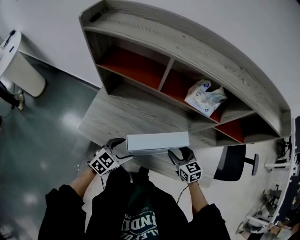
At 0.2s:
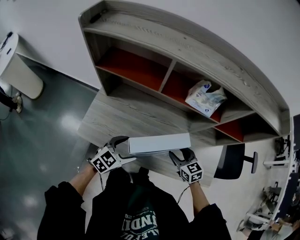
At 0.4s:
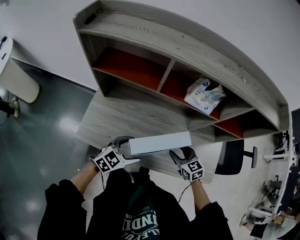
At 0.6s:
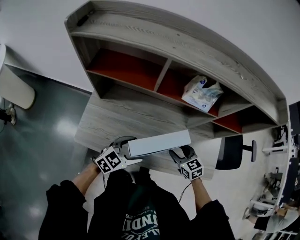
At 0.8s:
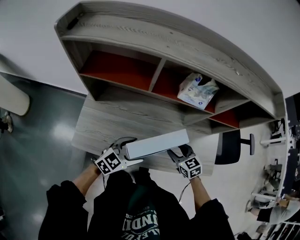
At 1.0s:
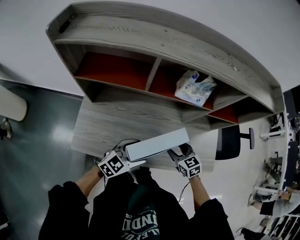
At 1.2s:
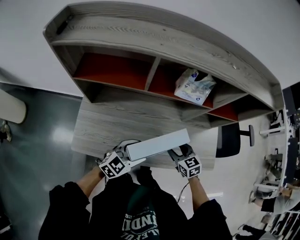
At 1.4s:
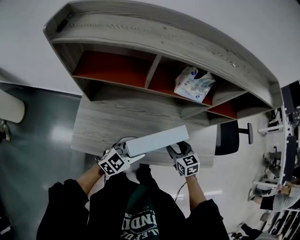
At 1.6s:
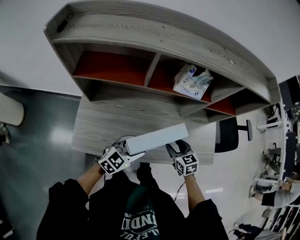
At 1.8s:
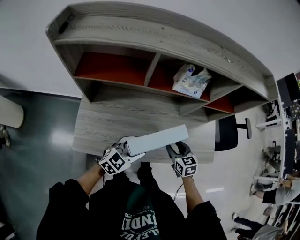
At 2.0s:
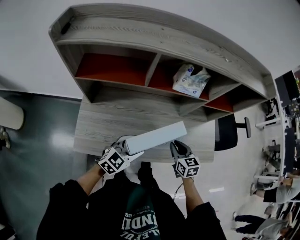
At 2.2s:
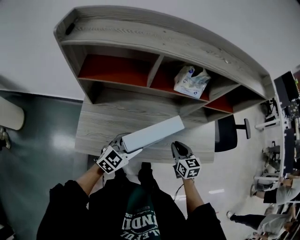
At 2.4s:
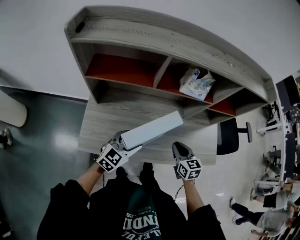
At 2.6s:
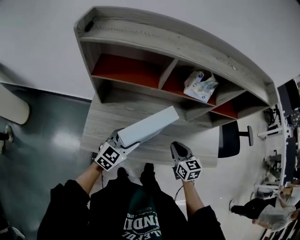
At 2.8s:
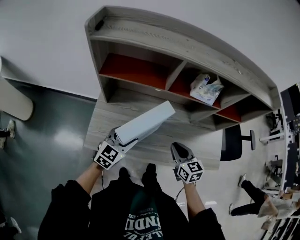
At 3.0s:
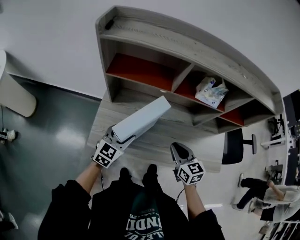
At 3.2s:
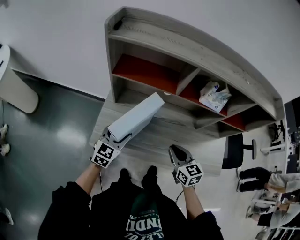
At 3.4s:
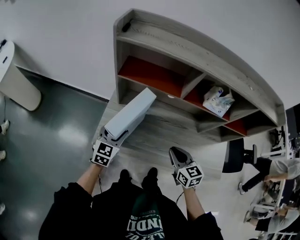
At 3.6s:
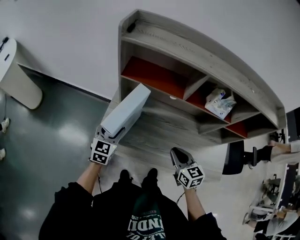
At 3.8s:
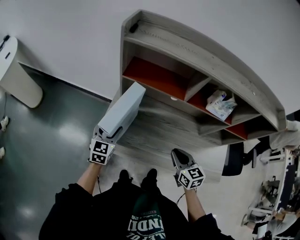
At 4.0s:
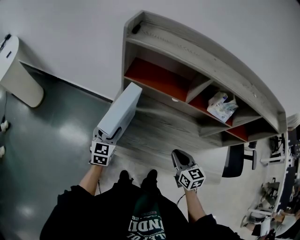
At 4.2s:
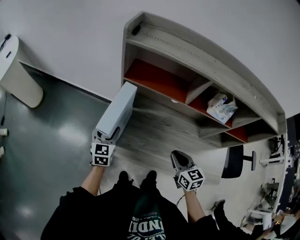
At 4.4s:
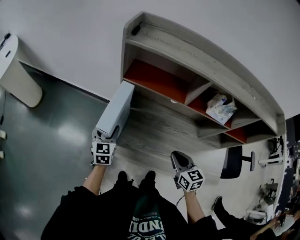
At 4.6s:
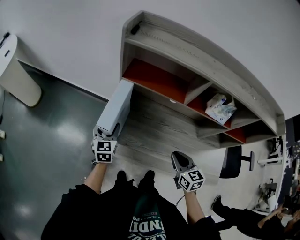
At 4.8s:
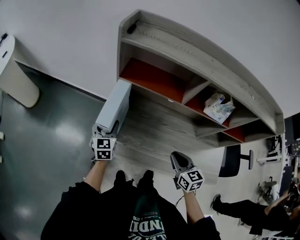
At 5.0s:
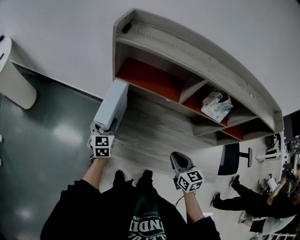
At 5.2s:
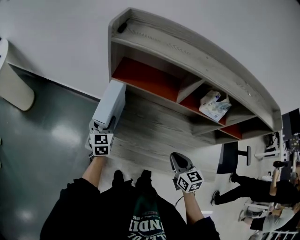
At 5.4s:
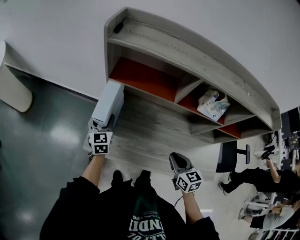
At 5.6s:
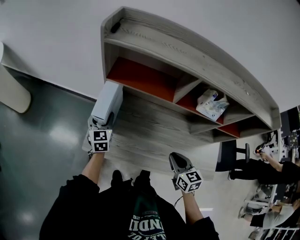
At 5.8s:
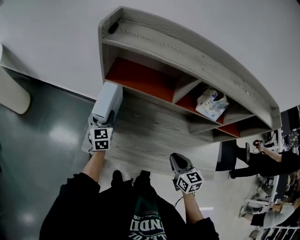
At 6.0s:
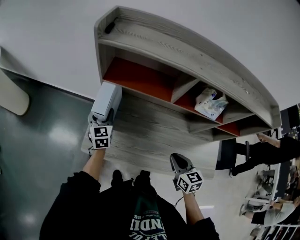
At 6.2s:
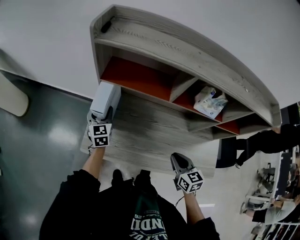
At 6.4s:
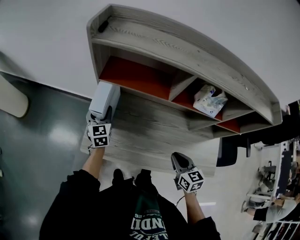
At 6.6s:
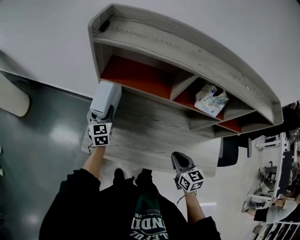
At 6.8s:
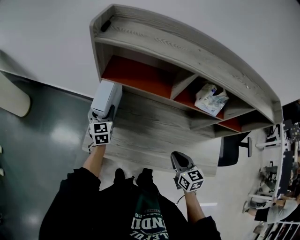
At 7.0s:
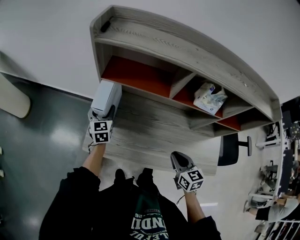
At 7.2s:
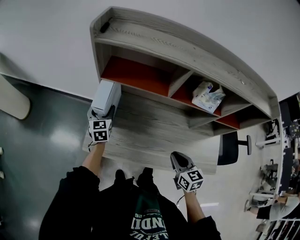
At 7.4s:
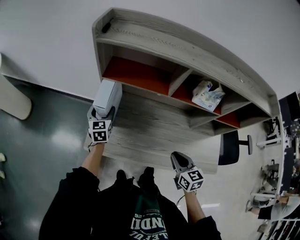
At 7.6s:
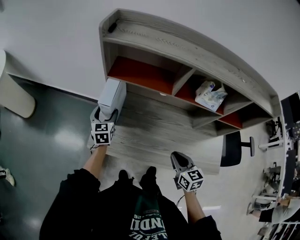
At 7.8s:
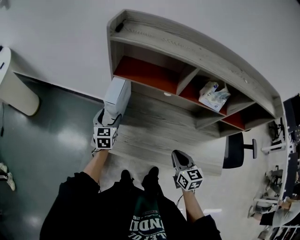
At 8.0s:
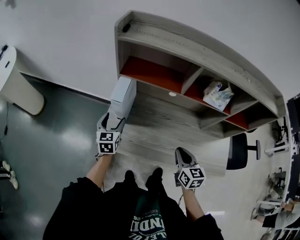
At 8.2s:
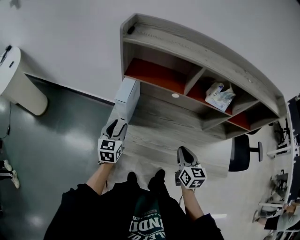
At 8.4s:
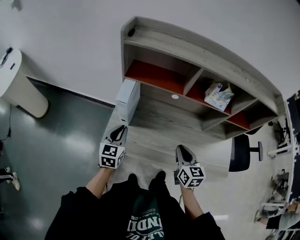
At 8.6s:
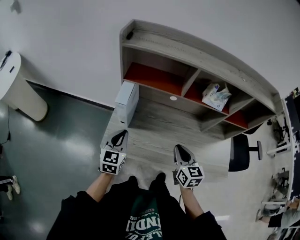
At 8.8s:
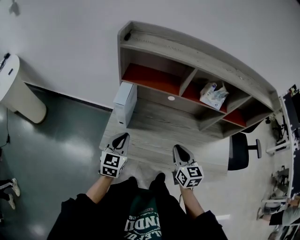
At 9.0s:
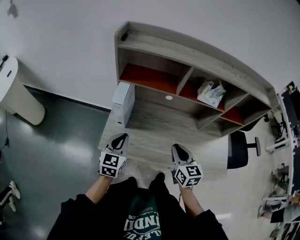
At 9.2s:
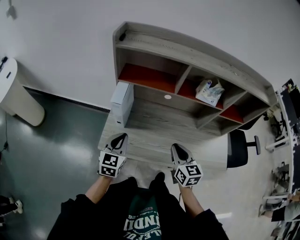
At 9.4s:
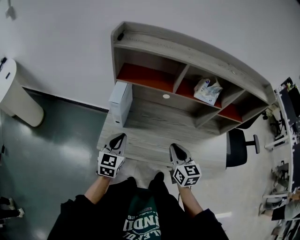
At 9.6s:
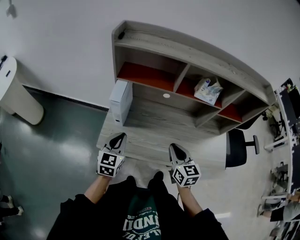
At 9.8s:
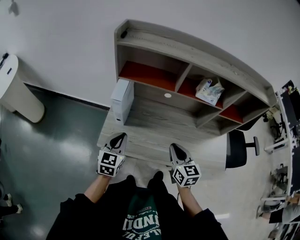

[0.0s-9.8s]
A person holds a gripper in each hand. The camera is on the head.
0.0s to 1.4s: The left gripper travels to the right by approximately 5 cm, and rotates about 20 degrees.
1.4s to 2.8s: The right gripper moves upward and to the left, about 10 cm, and closes up, while the left gripper shifts roughly 15 cm to the left, and rotates some 20 degrees.
2.8s to 4.2s: The left gripper shifts by about 20 cm, and swivels approximately 40 degrees; the right gripper ends up some 5 cm from where it was.
4.2s to 5.6s: The left gripper goes about 10 cm forward.
5.6s to 7.0s: The grippers move only a little.
7.0s to 8.4s: The left gripper heads backward, covering roughly 15 cm, and closes its fingers. The right gripper heads to the left, covering about 5 cm.
8.4s to 9.8s: The left gripper moves backward, approximately 5 cm.

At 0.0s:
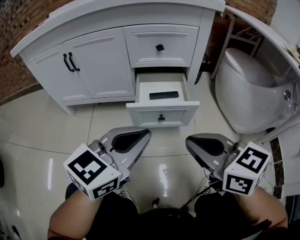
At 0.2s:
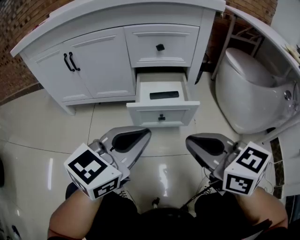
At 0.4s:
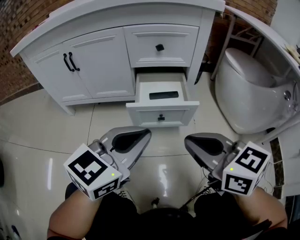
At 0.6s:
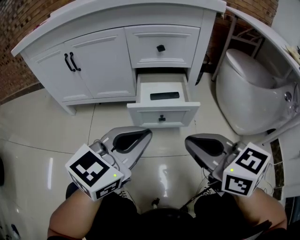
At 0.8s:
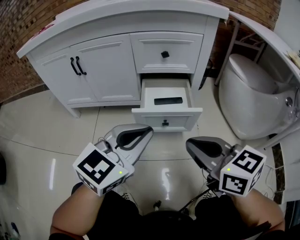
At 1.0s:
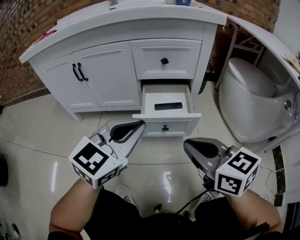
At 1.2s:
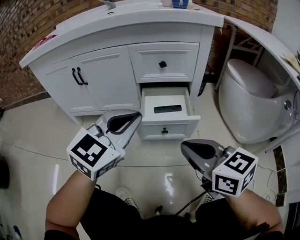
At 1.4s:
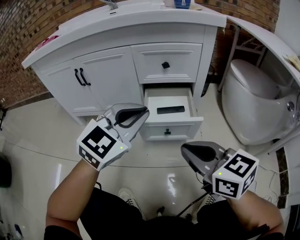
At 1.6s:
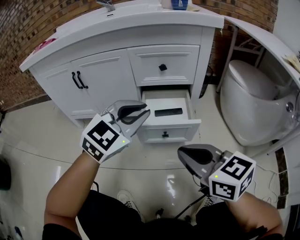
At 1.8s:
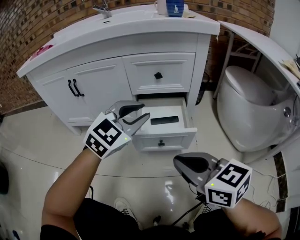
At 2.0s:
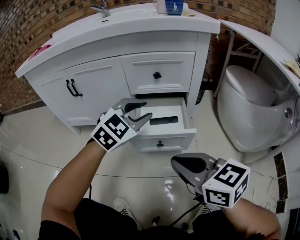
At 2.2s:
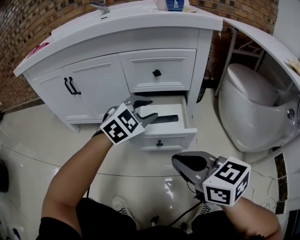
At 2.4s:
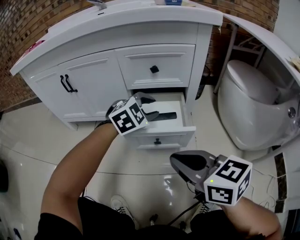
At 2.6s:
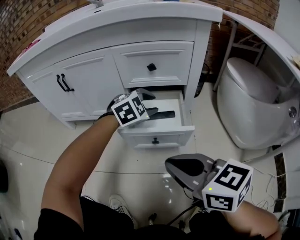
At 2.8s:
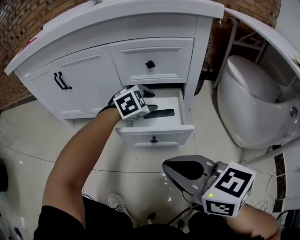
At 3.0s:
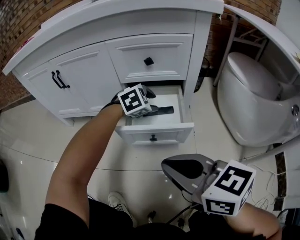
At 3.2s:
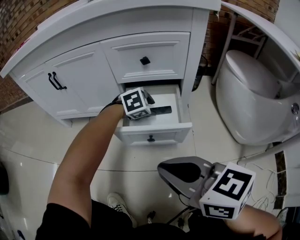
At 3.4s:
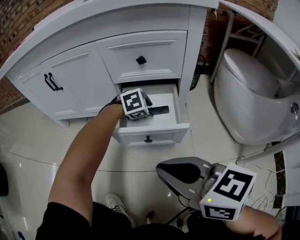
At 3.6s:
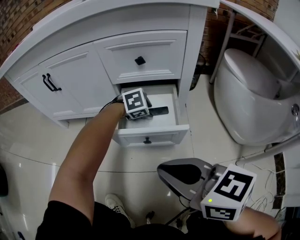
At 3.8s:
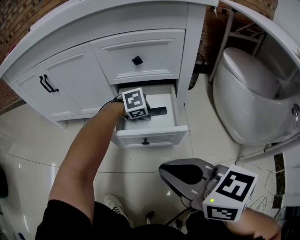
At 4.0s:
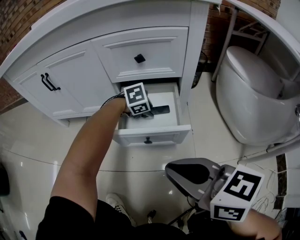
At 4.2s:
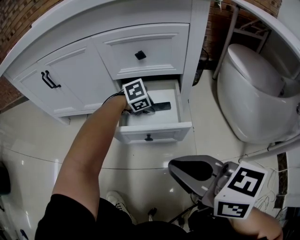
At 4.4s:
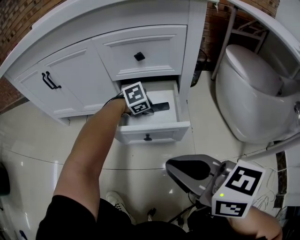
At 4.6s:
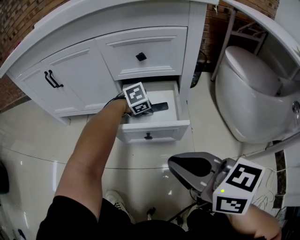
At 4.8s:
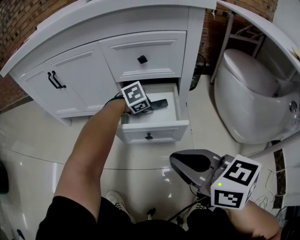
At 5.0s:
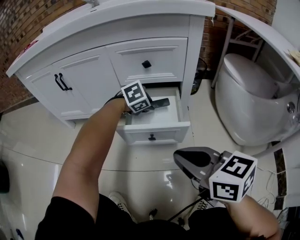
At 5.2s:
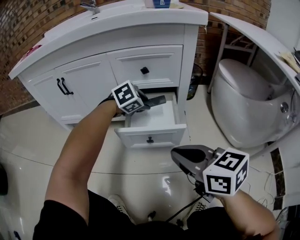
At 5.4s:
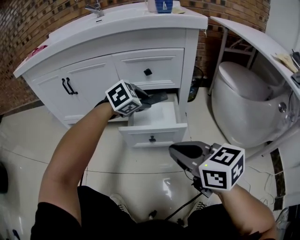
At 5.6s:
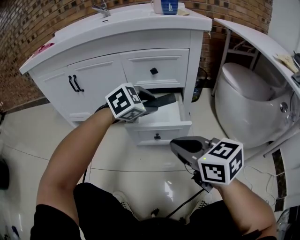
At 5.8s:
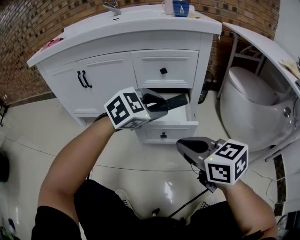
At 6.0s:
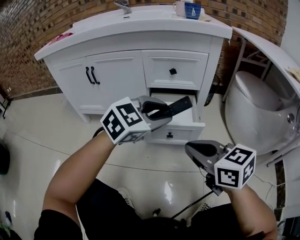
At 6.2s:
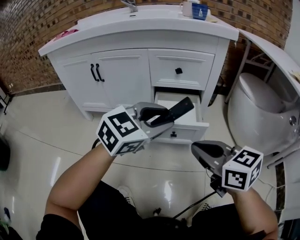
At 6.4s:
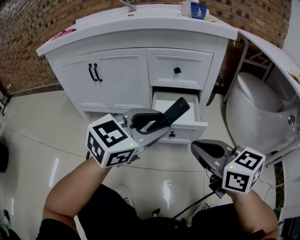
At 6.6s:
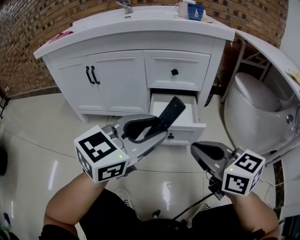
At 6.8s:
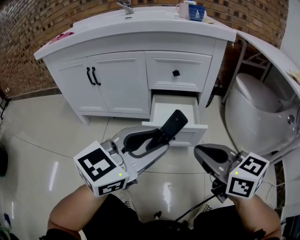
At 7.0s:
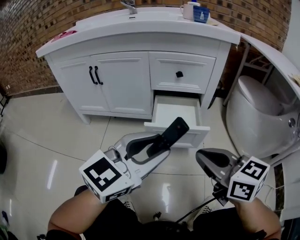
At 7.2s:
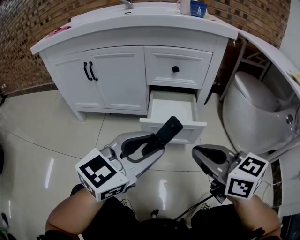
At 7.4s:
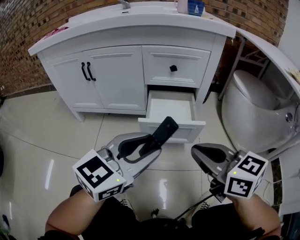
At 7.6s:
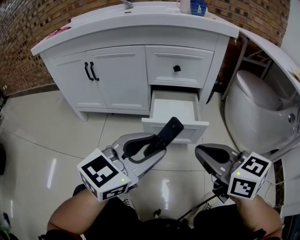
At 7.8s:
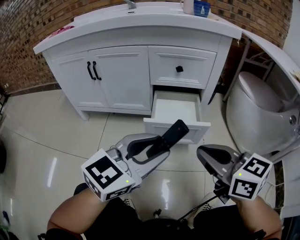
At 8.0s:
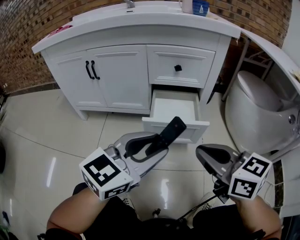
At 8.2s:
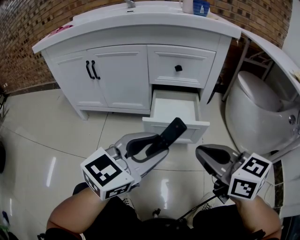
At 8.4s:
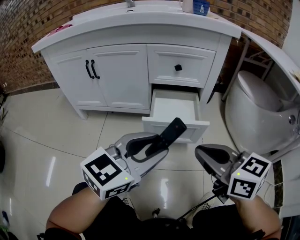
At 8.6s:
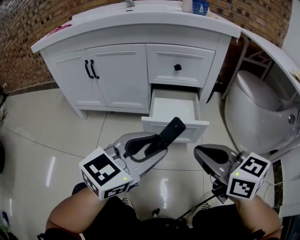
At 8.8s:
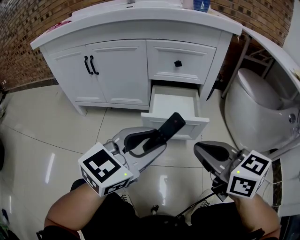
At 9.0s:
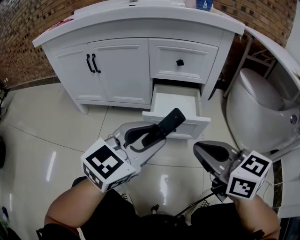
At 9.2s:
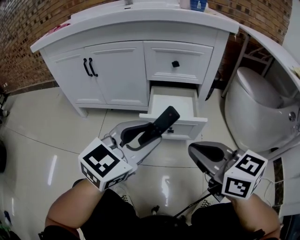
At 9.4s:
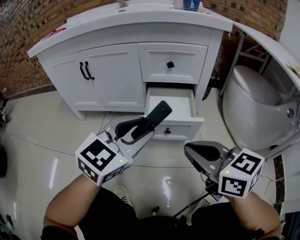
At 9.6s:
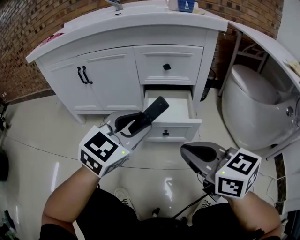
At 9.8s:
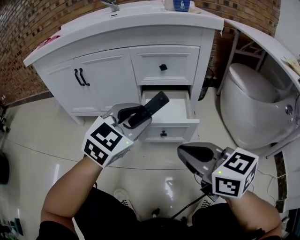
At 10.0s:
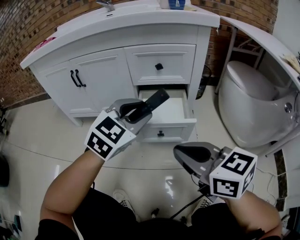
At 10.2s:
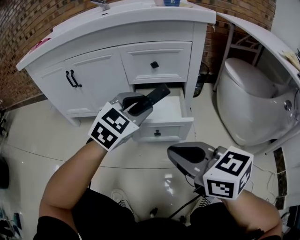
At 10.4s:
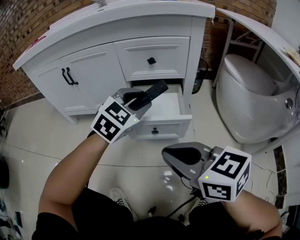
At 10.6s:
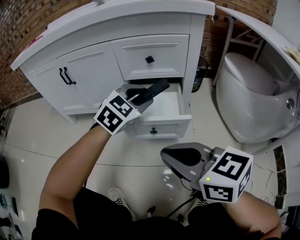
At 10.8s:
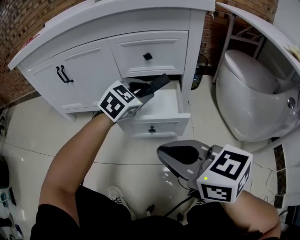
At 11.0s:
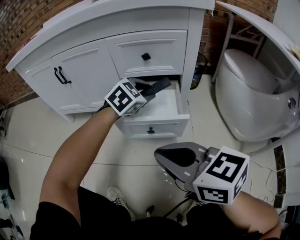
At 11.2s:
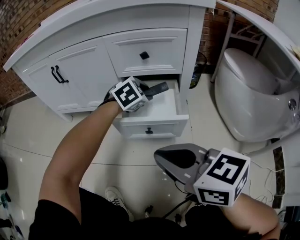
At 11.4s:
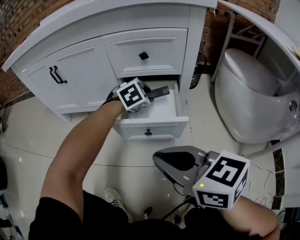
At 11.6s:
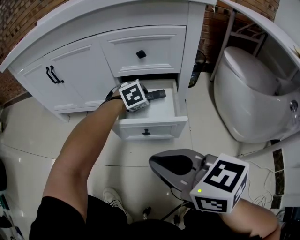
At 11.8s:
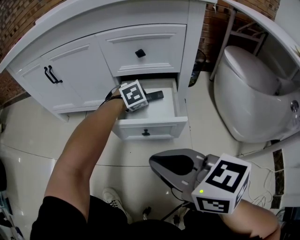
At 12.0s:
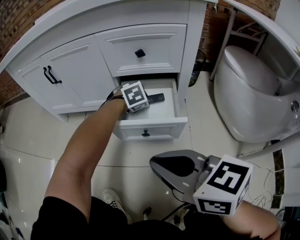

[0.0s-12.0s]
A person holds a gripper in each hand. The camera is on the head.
0.0s to 1.6s: The left gripper shifts roughly 10 cm forward, and turns by about 30 degrees.
1.6s to 3.0s: The left gripper moves downward, forward and to the right, approximately 25 cm, points its fingers approximately 30 degrees further downward, and opens.
3.0s to 4.4s: The left gripper goes approximately 10 cm downward.
4.4s to 6.0s: The left gripper is displaced upward by approximately 25 cm, and tips its fingers upward by some 40 degrees.
6.0s to 7.6s: The left gripper shifts some 10 cm backward, and turns by some 20 degrees.
7.6s to 9.0s: The grippers make only small movements.
9.0s to 10.4s: The left gripper heads forward, covering roughly 15 cm, and turns by roughly 20 degrees.
10.4s to 12.0s: The left gripper heads downward and forward, covering roughly 20 cm, and angles its fingers downward, by roughly 40 degrees.

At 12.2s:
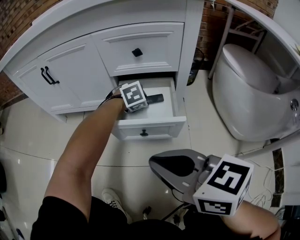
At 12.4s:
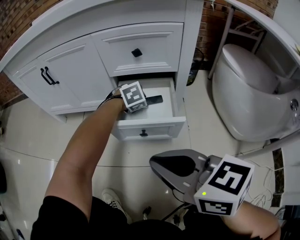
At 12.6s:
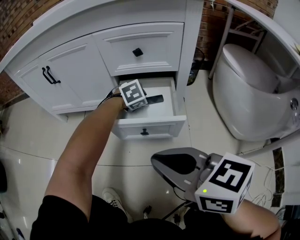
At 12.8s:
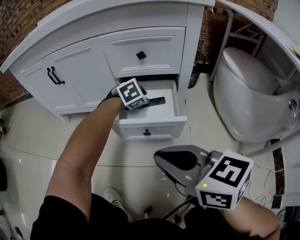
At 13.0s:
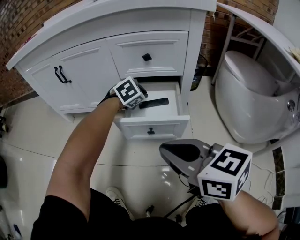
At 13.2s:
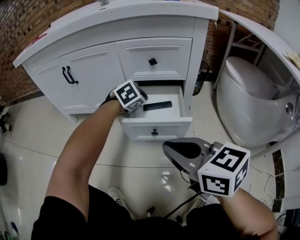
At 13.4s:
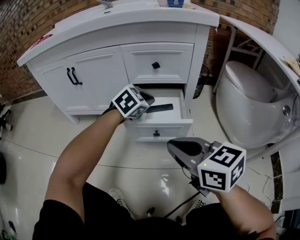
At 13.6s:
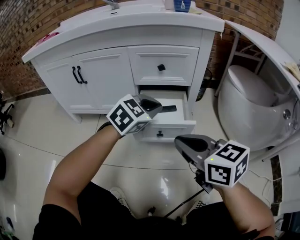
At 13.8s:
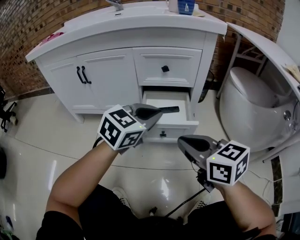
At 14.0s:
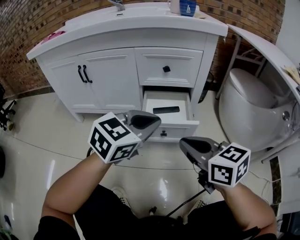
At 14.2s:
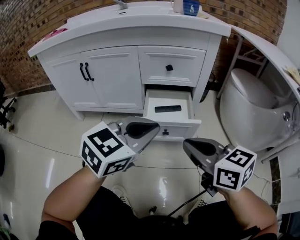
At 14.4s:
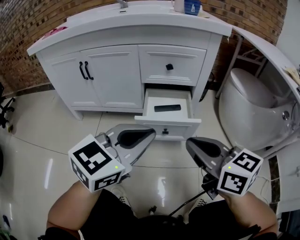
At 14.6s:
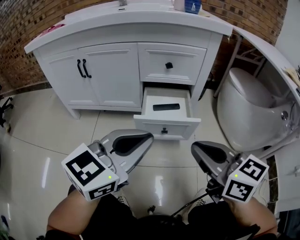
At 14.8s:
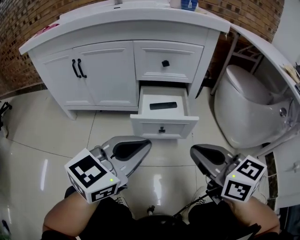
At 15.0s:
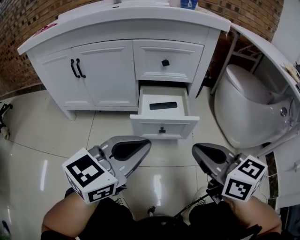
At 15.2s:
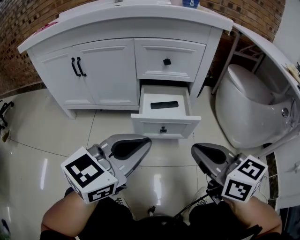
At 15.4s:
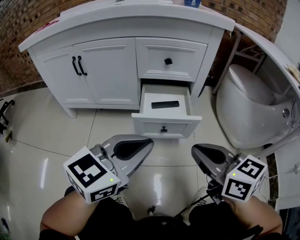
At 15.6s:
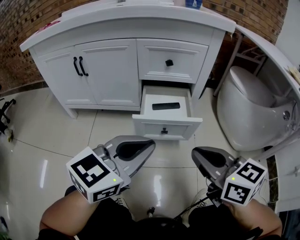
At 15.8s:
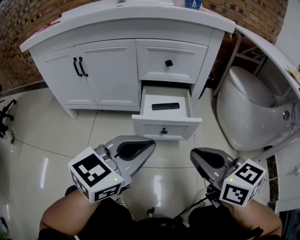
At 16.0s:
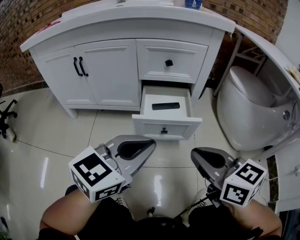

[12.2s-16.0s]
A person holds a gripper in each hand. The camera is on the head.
12.2s to 13.4s: The left gripper moves upward and backward, about 15 cm, rotates about 20 degrees, and closes up.
13.4s to 14.8s: The left gripper goes some 25 cm backward and upward, and swivels about 40 degrees.
14.8s to 16.0s: The grippers move only a little.
